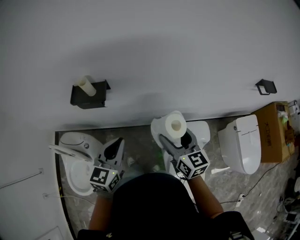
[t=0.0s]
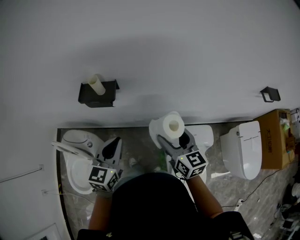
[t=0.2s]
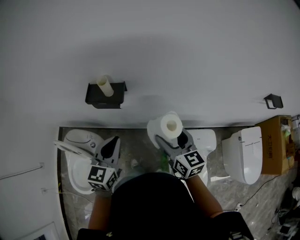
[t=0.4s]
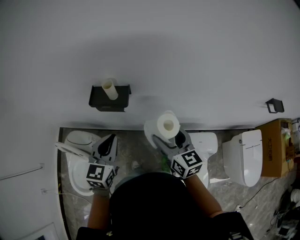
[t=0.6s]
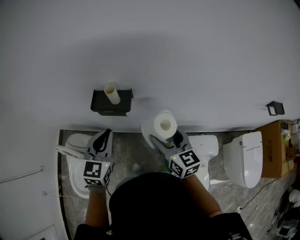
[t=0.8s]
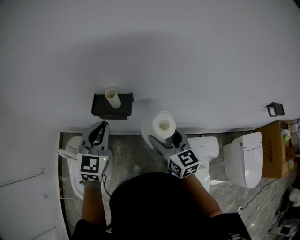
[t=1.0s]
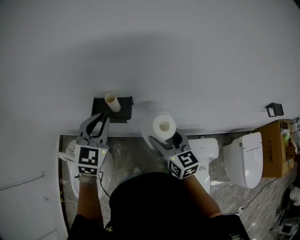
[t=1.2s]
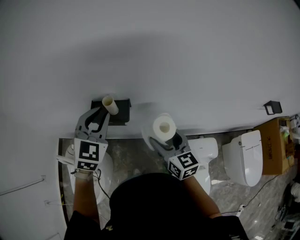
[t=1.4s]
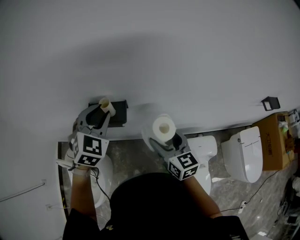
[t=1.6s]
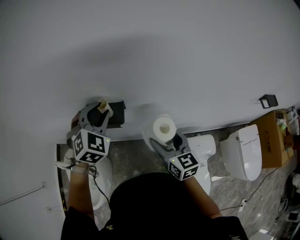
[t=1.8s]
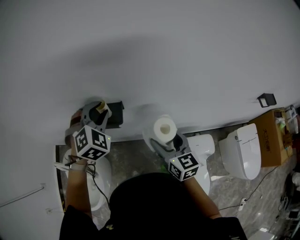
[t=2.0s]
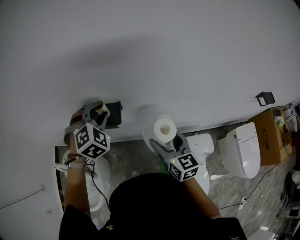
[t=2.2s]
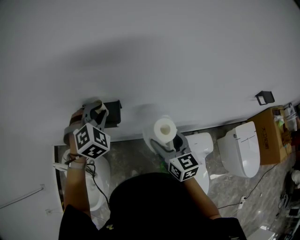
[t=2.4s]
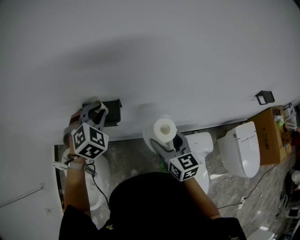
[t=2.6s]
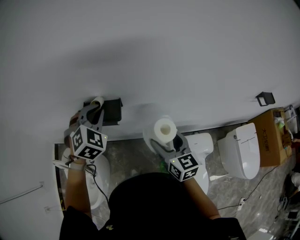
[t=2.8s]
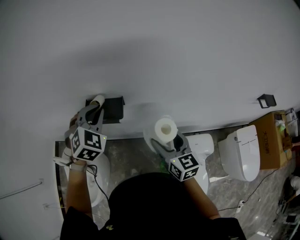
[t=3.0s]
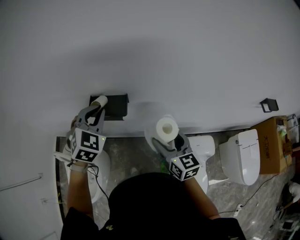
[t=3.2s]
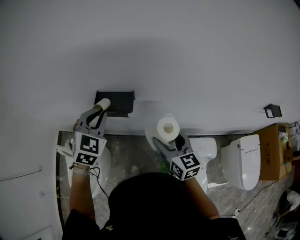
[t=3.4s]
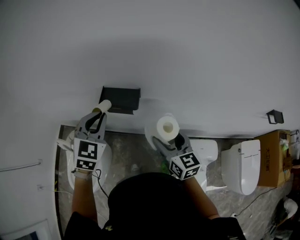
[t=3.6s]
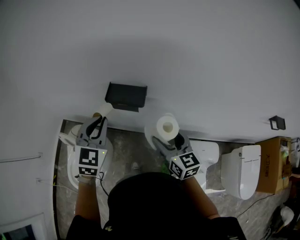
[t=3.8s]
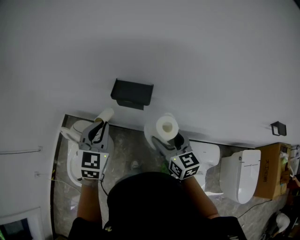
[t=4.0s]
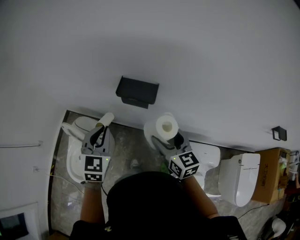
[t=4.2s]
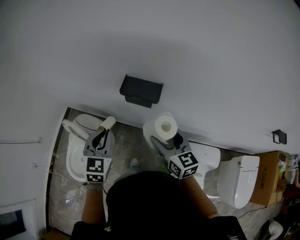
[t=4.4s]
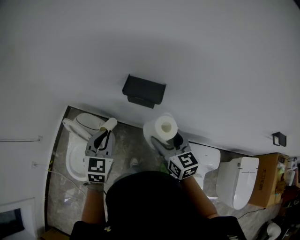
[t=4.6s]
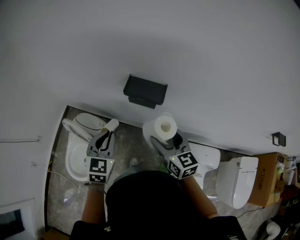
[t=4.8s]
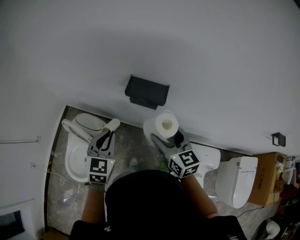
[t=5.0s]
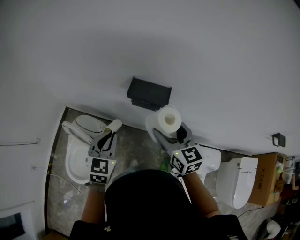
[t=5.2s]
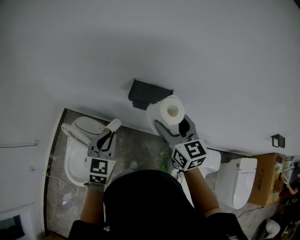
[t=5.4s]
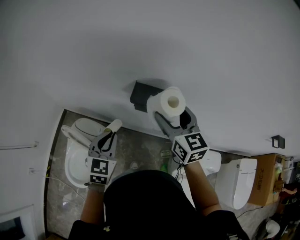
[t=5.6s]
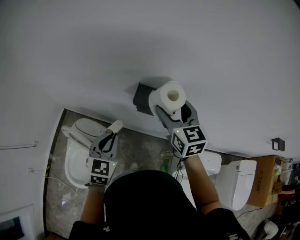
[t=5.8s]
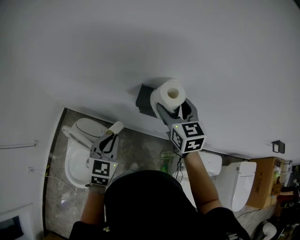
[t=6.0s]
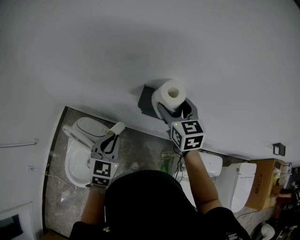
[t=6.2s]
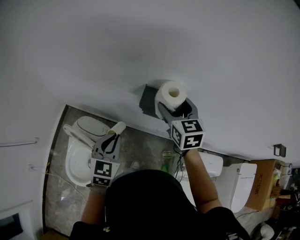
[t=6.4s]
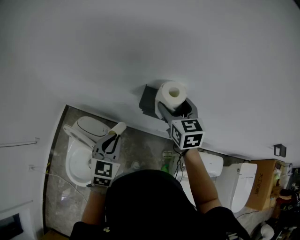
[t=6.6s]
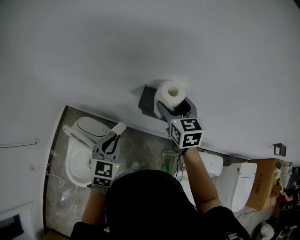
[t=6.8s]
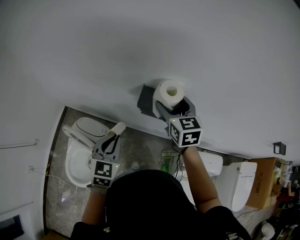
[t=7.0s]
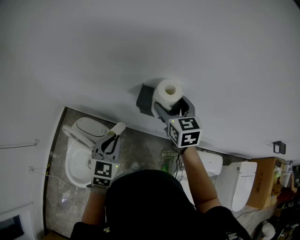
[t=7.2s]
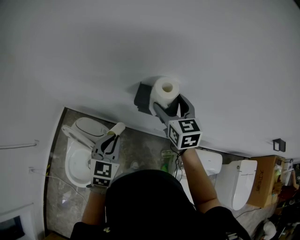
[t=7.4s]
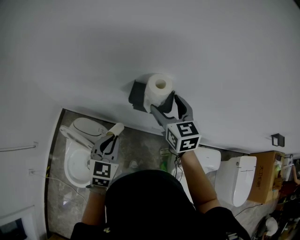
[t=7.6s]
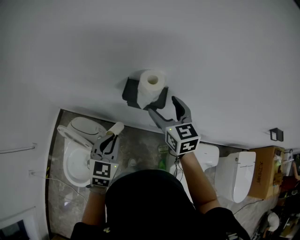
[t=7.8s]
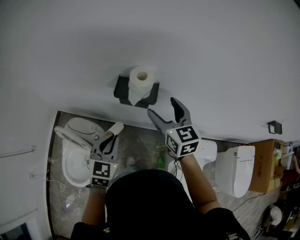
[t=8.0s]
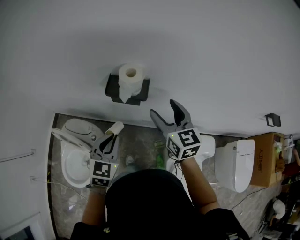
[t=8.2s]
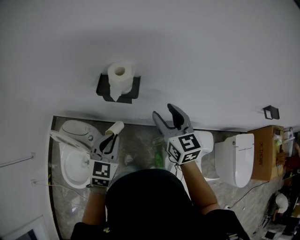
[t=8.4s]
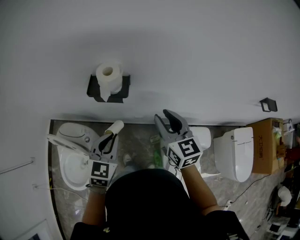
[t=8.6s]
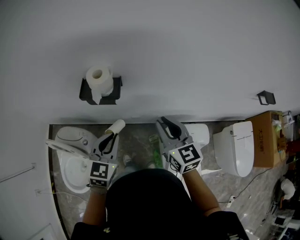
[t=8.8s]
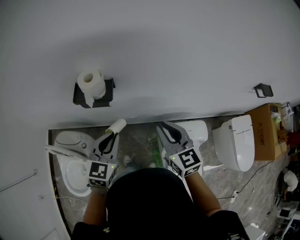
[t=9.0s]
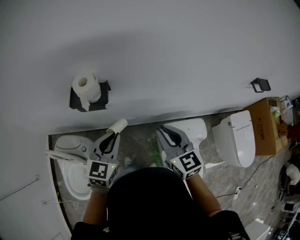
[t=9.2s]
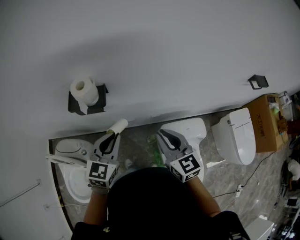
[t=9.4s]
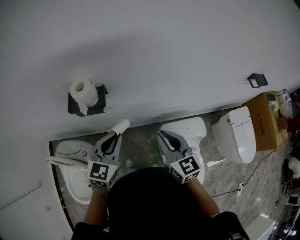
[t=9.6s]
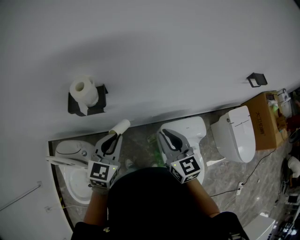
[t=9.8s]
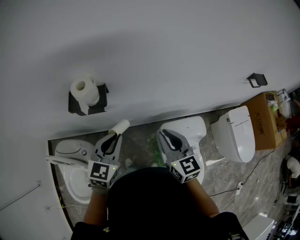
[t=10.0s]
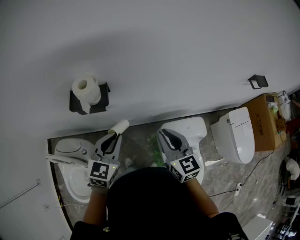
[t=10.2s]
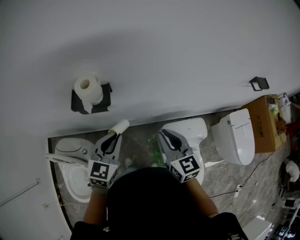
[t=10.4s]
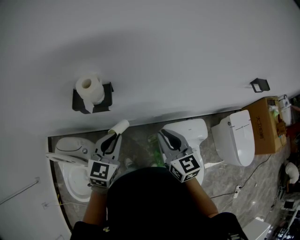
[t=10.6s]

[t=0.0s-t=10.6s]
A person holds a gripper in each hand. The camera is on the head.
t=0.0s to t=1.6s: The left gripper goes approximately 25 cm forward and to the left, swivels about 40 degrees, and opens its fingers; the right gripper is displaced to the left and forward by about 15 cm.
t=1.6s to t=3.0s: The left gripper closes its fingers.
t=3.0s to t=4.6s: The right gripper is displaced to the left by some 15 cm. The left gripper travels to the left, backward and downward by about 25 cm, and changes its angle by about 40 degrees.
t=4.6s to t=6.0s: The right gripper is displaced forward by roughly 20 cm, while the left gripper travels forward by approximately 5 cm.
t=6.0s to t=7.6s: The grippers make only small movements.
t=7.6s to t=9.0s: The right gripper is displaced to the right and backward by roughly 25 cm, and closes. Meanwhile the left gripper travels to the right by about 20 cm.
t=9.0s to t=10.6s: The grippers move only a little.

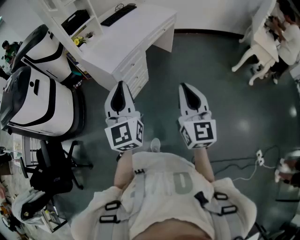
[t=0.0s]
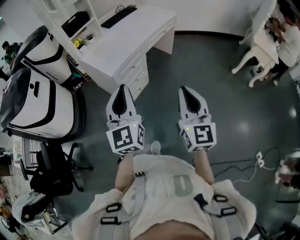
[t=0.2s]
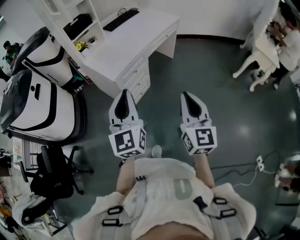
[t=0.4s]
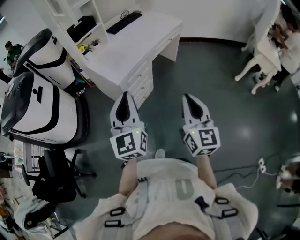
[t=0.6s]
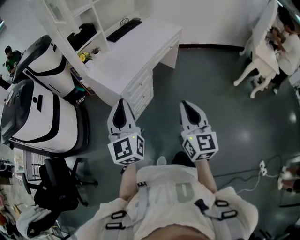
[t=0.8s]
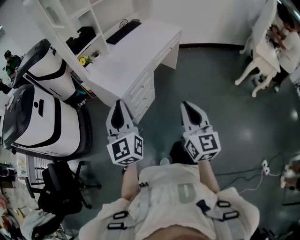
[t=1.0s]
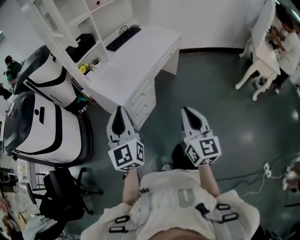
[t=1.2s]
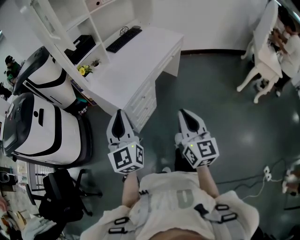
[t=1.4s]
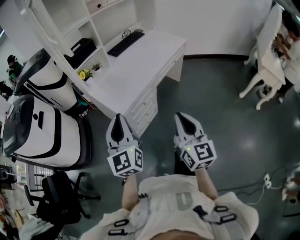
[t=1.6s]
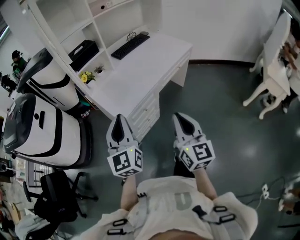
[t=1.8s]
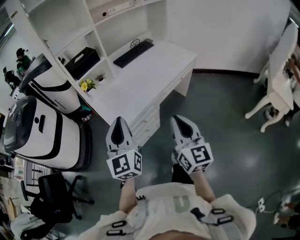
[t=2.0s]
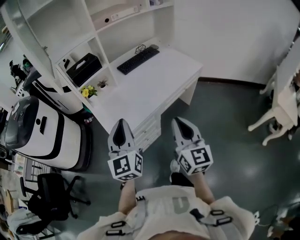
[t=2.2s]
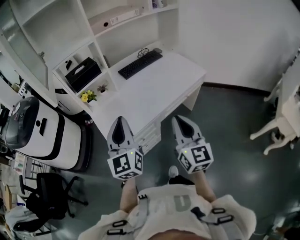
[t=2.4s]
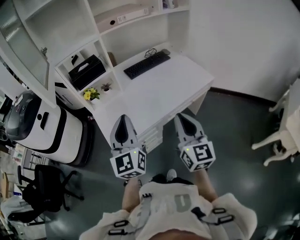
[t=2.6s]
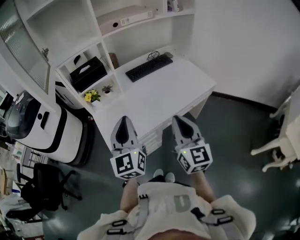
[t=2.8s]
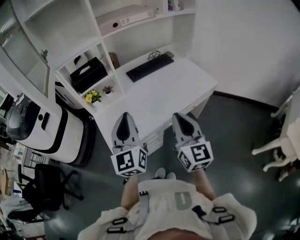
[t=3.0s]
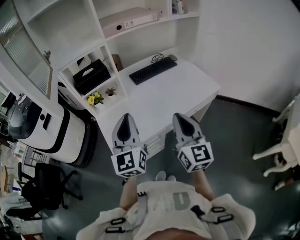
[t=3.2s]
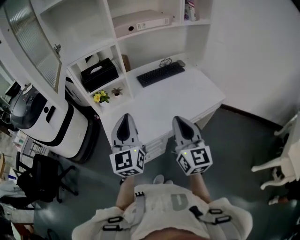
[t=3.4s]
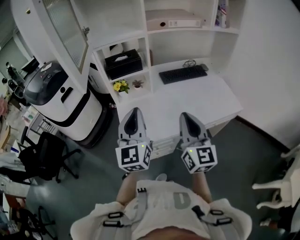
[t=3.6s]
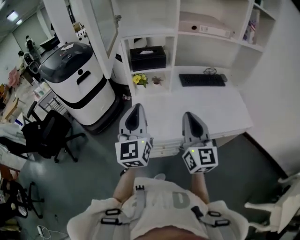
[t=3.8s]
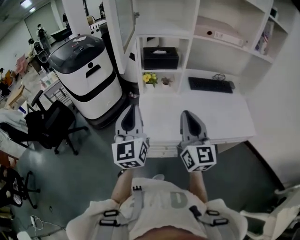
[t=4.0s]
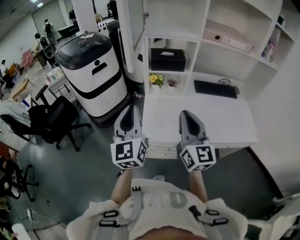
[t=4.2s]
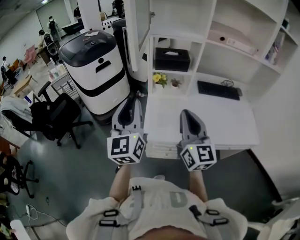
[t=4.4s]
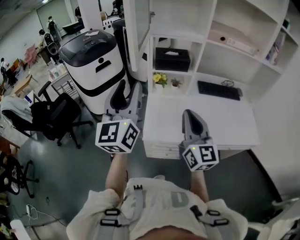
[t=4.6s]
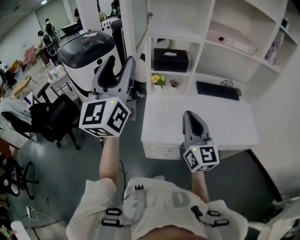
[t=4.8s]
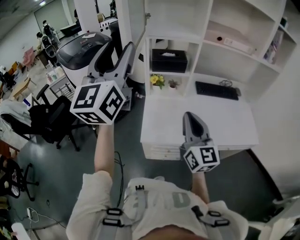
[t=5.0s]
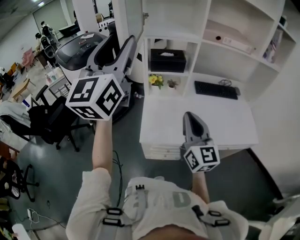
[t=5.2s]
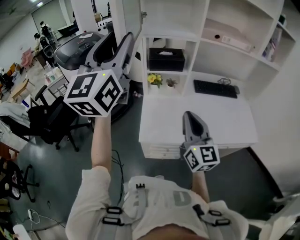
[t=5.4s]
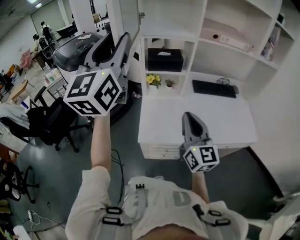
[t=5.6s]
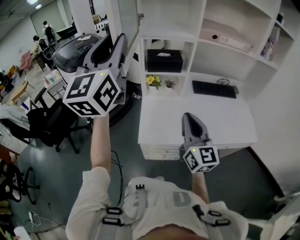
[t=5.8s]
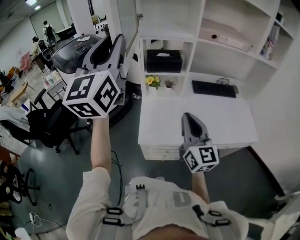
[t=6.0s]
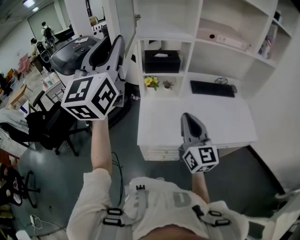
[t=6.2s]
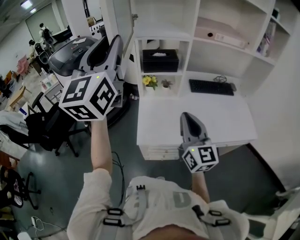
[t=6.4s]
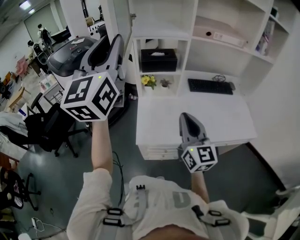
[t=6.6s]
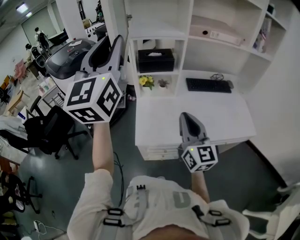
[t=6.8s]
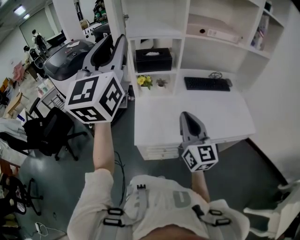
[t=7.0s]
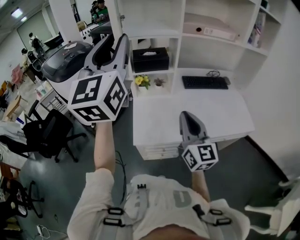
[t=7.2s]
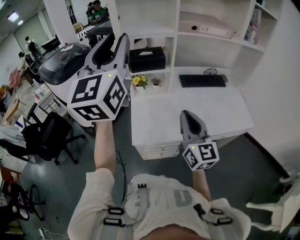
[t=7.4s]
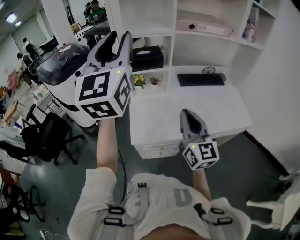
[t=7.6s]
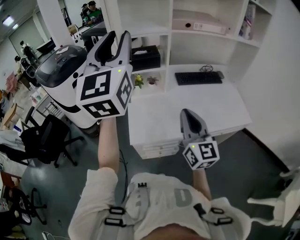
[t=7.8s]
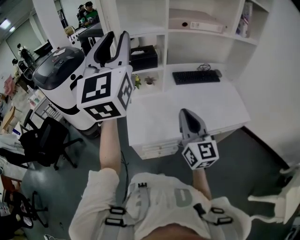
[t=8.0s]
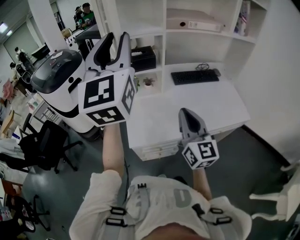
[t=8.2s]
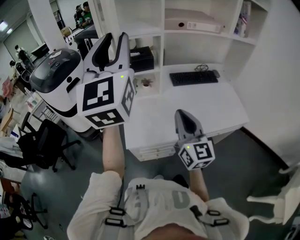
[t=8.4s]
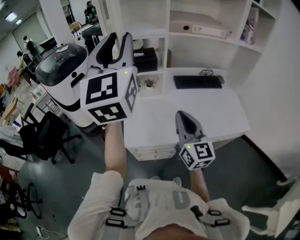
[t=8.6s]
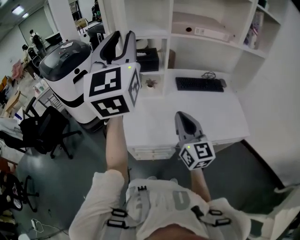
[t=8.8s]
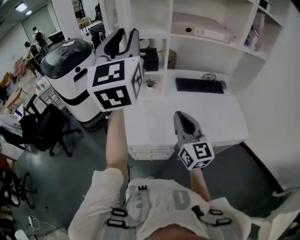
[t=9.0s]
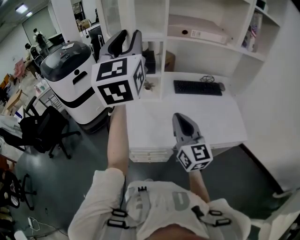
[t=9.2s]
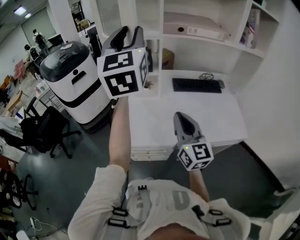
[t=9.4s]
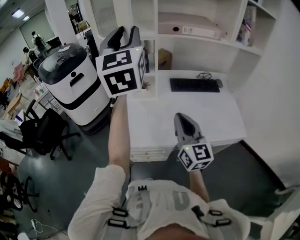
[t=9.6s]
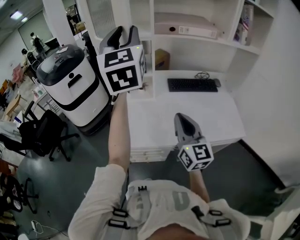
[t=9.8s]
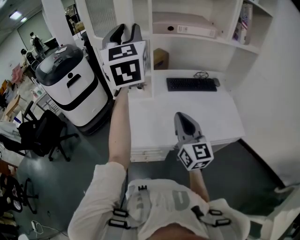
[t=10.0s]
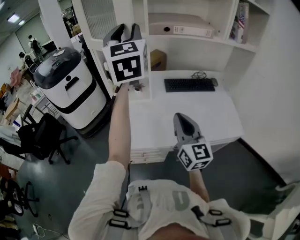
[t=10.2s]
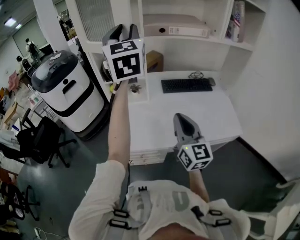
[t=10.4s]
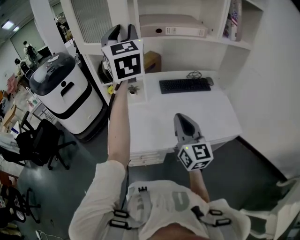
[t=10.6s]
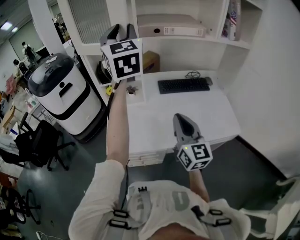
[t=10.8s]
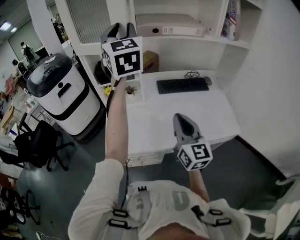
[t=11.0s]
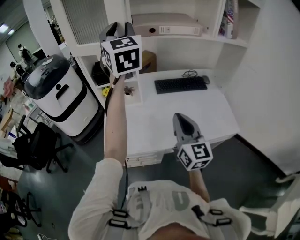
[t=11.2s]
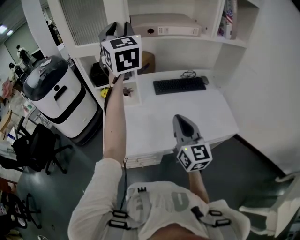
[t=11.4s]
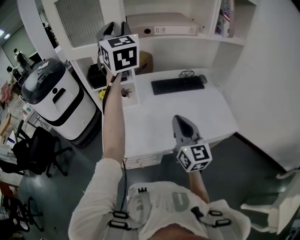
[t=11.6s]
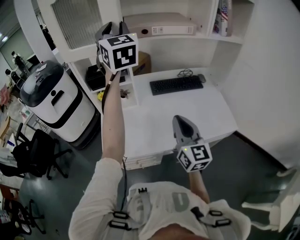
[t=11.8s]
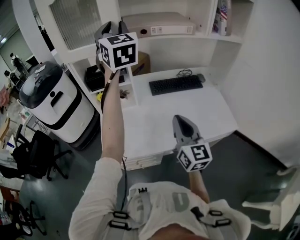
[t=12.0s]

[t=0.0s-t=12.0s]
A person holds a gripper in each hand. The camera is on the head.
t=0.0s to t=1.6s: The left gripper goes some 15 cm forward and to the left. Meanwhile the right gripper moves forward, roughly 15 cm.
t=1.6s to t=3.0s: Both grippers move forward and to the right, roughly 30 cm. The right gripper turns by approximately 20 degrees.
t=3.0s to t=4.4s: The left gripper changes place by some 20 cm, and turns by some 30 degrees; the right gripper changes place by approximately 20 cm, and swivels some 30 degrees.
t=4.4s to t=6.0s: The left gripper goes approximately 20 cm upward, and opens, then closes again.
t=6.0s to t=7.6s: The left gripper goes approximately 10 cm to the right.
t=7.6s to t=9.0s: The left gripper shifts approximately 5 cm to the right. Meanwhile the right gripper moves some 5 cm.
t=9.0s to t=10.4s: The left gripper moves to the right and forward, roughly 15 cm; the right gripper travels to the right by roughly 10 cm.
t=10.4s to t=12.0s: The left gripper travels forward by approximately 10 cm. The right gripper moves roughly 5 cm.

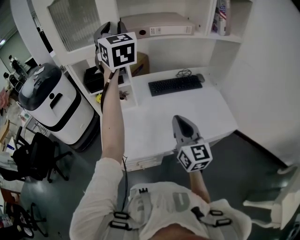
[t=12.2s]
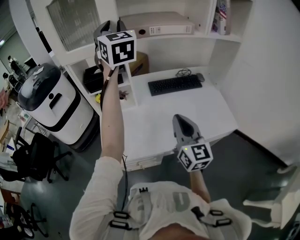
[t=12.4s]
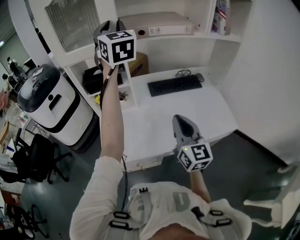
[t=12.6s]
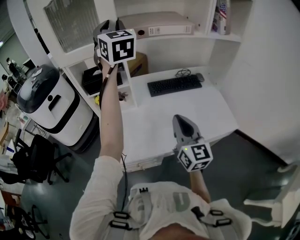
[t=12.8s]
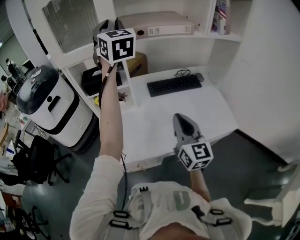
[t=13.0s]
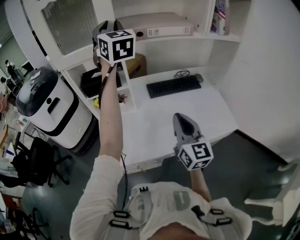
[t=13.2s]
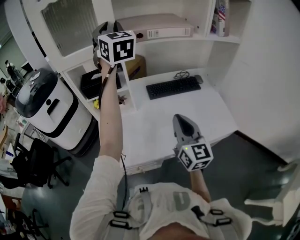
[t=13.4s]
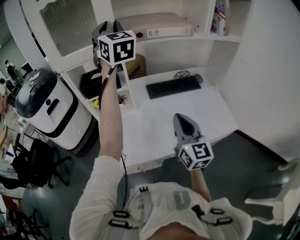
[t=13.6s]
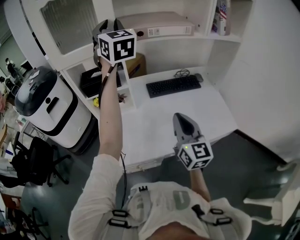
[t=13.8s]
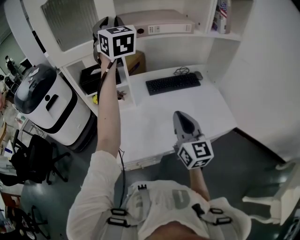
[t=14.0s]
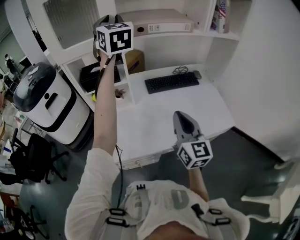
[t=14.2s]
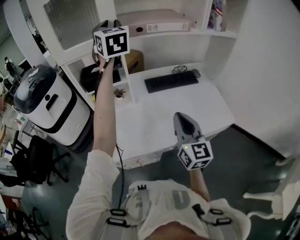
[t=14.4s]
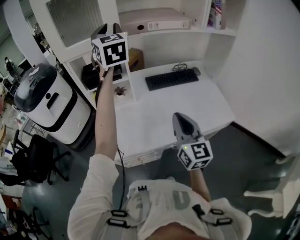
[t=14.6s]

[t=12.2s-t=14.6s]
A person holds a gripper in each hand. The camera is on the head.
t=12.2s to t=13.4s: The grippers stay close to where they were, moving slightly.
t=13.4s to t=14.6s: The right gripper changes place by approximately 5 cm. Meanwhile the left gripper shifts by some 5 cm.
